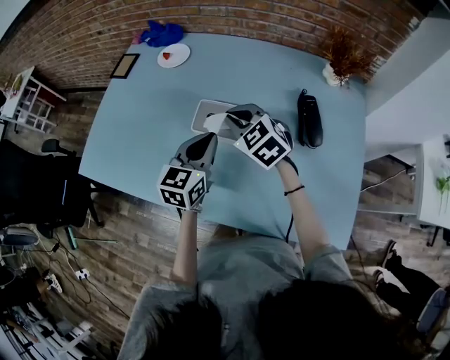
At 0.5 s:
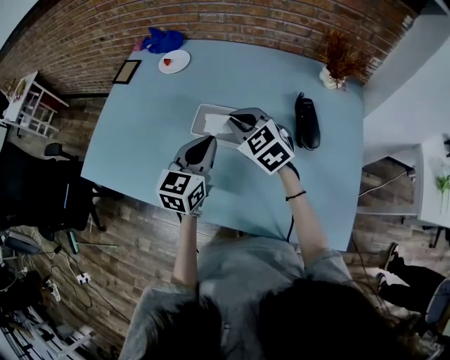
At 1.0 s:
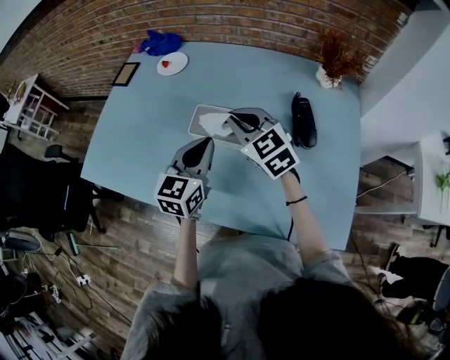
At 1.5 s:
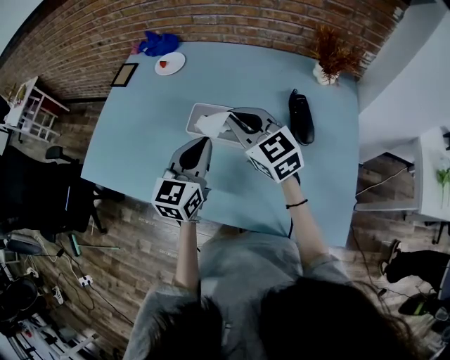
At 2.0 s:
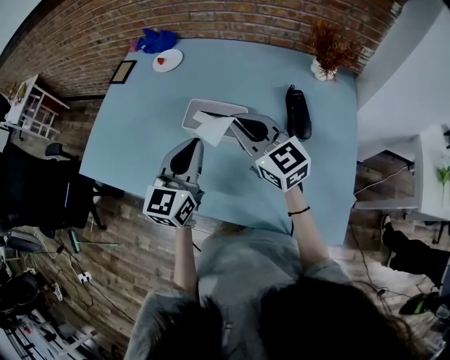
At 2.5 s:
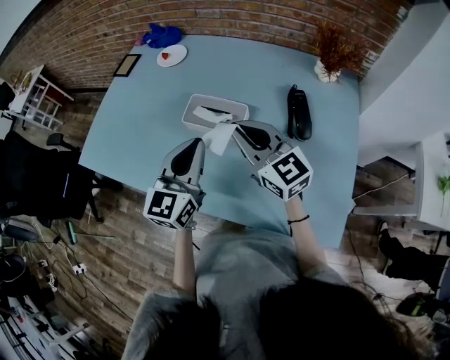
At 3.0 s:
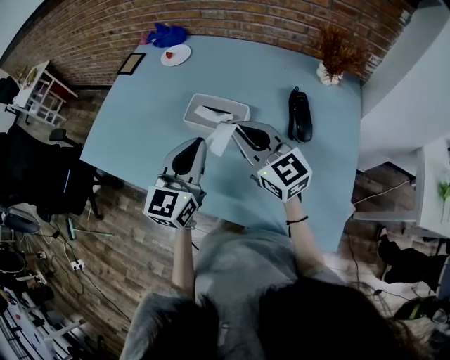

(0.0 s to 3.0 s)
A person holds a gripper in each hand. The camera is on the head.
0.0 s - 1.5 s: The left gripper ends up about 5 cm from where it was. The right gripper is displaced upward by roughly 5 cm, and turns by approximately 20 degrees.
1.5 s - 3.0 s: The grippers both shift backward by some 5 cm.

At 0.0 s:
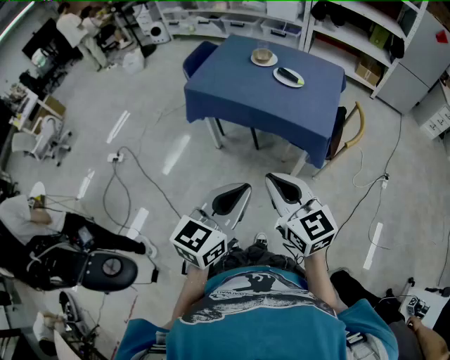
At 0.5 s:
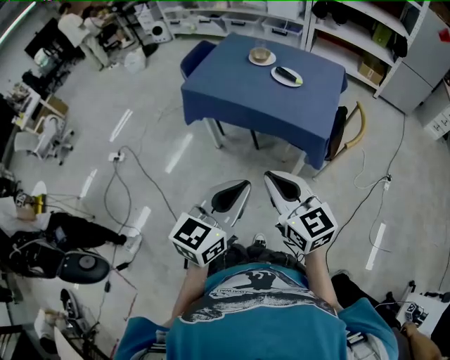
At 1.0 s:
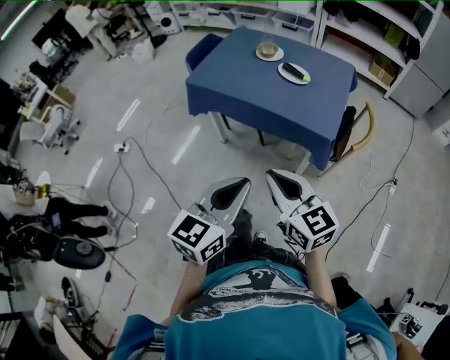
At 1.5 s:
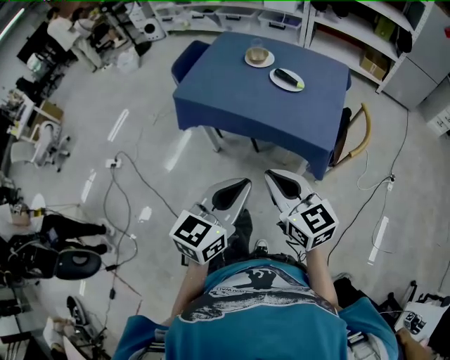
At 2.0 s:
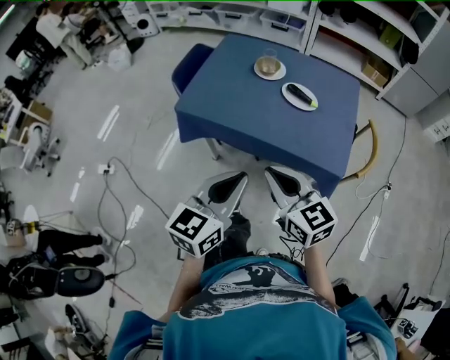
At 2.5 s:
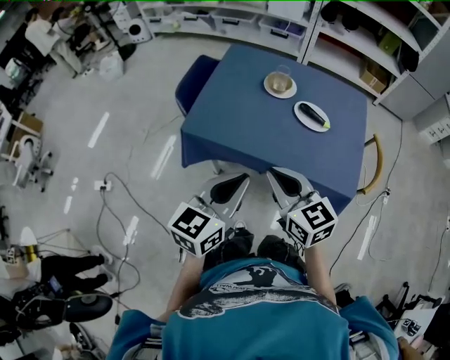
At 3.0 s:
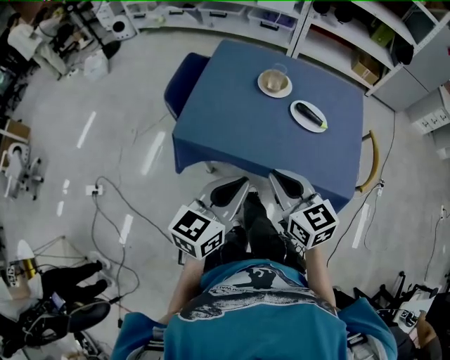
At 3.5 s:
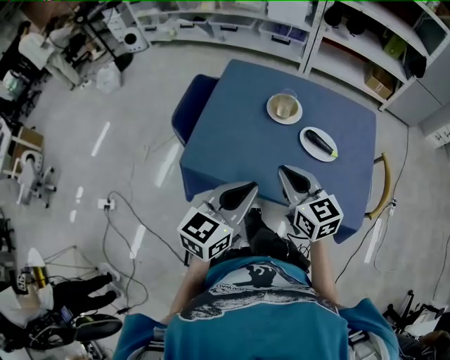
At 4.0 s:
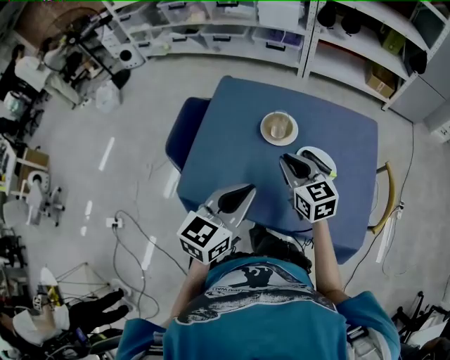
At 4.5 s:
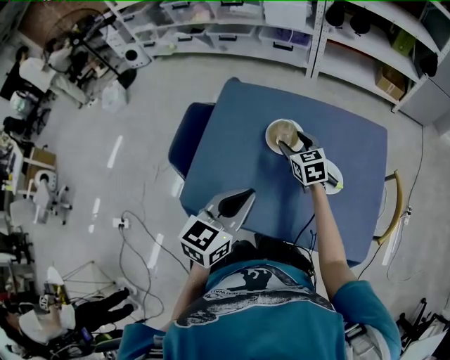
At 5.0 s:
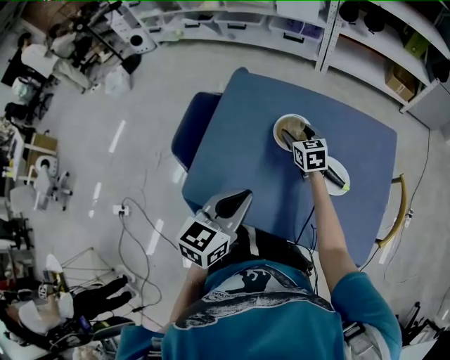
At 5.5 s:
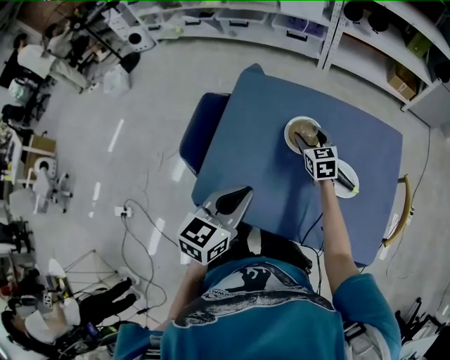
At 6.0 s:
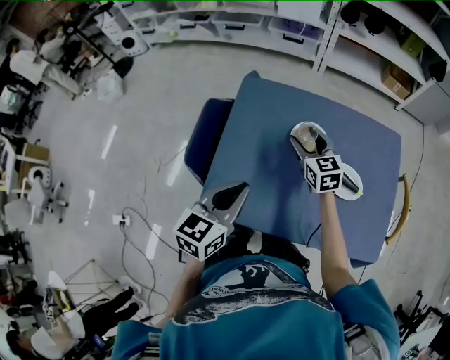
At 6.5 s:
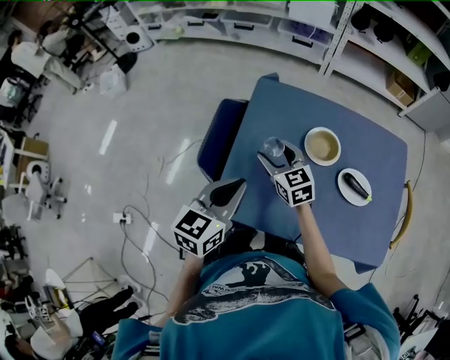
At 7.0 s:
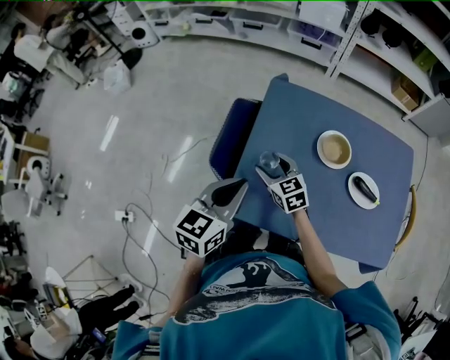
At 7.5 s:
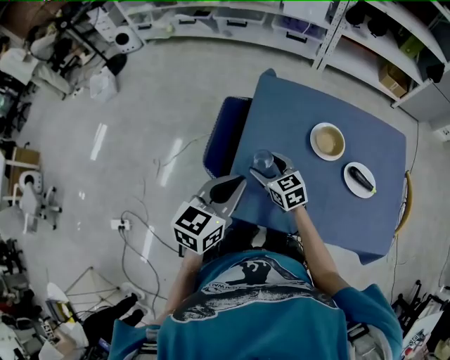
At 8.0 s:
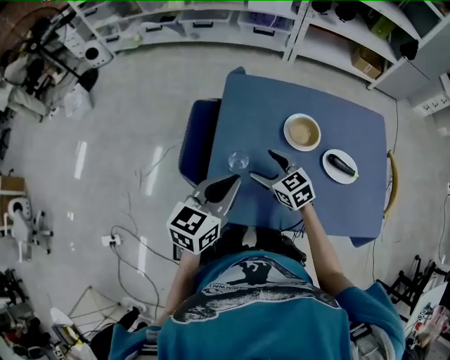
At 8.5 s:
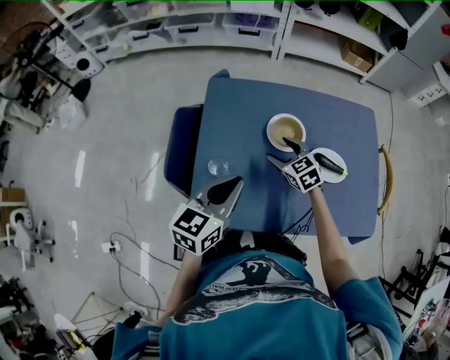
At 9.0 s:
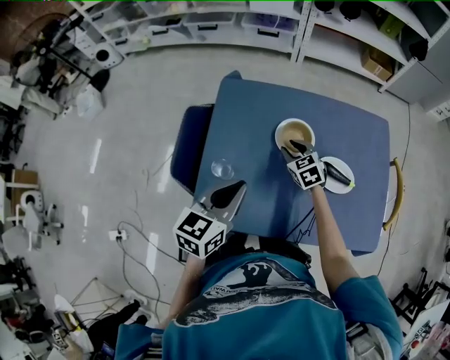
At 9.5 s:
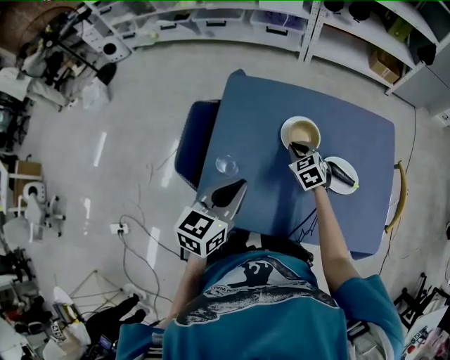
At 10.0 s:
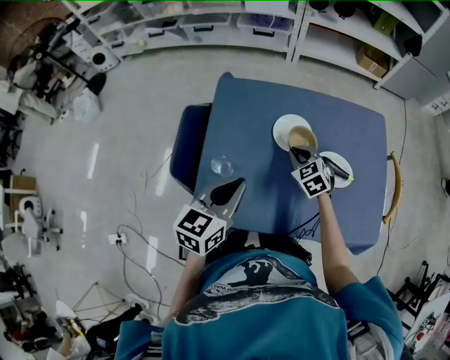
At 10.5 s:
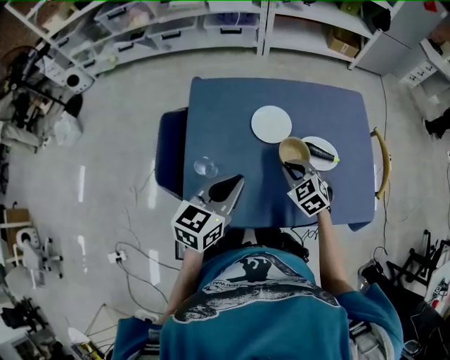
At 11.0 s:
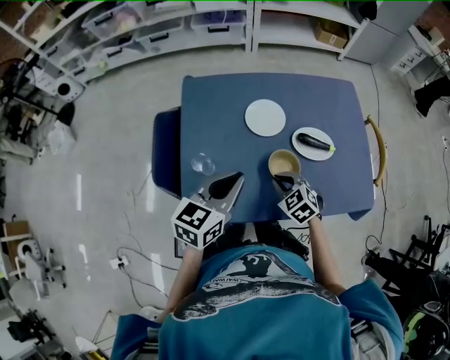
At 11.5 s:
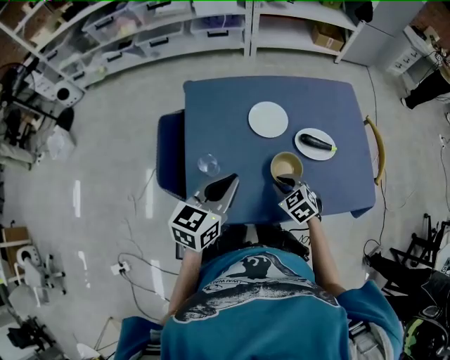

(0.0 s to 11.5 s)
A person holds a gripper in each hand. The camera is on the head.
0.0 s - 2.0 s: Both grippers travel together forward, approximately 25 cm.
2.0 s - 4.0 s: The two grippers go approximately 35 cm forward.
4.0 s - 6.0 s: The right gripper shifts roughly 15 cm forward, and opens; the left gripper is displaced to the left and forward by about 15 cm.
6.0 s - 7.5 s: The left gripper is displaced to the left by roughly 10 cm, while the right gripper travels to the left, backward and downward by roughly 25 cm.
7.5 s - 9.5 s: The right gripper travels to the right and forward by approximately 20 cm, turns by approximately 20 degrees, and closes its fingers. The left gripper goes roughly 10 cm to the right.
9.5 s - 11.5 s: The right gripper goes about 20 cm backward.

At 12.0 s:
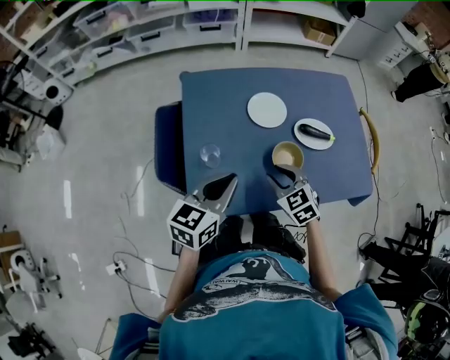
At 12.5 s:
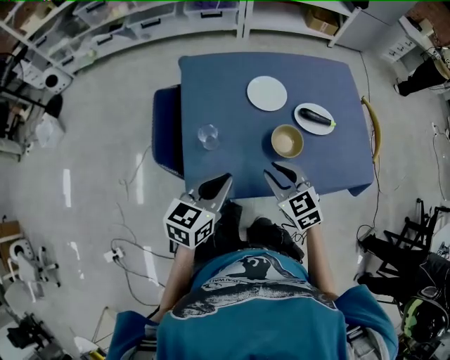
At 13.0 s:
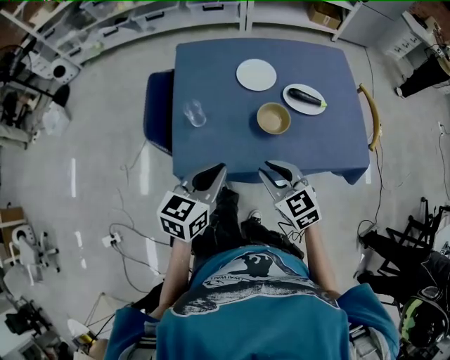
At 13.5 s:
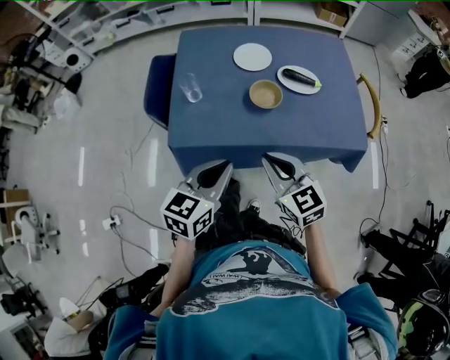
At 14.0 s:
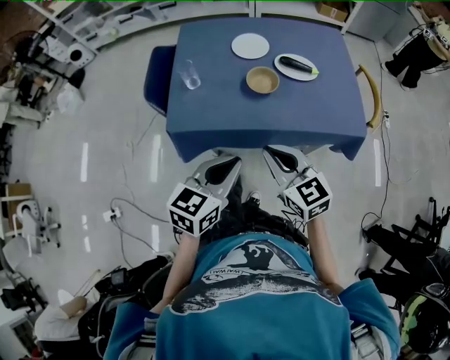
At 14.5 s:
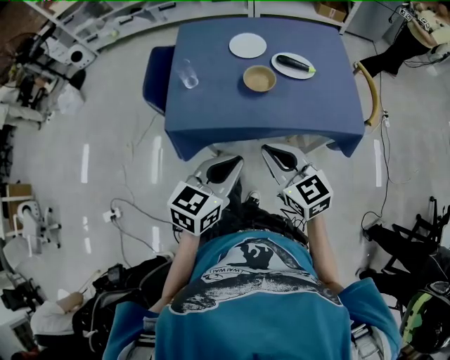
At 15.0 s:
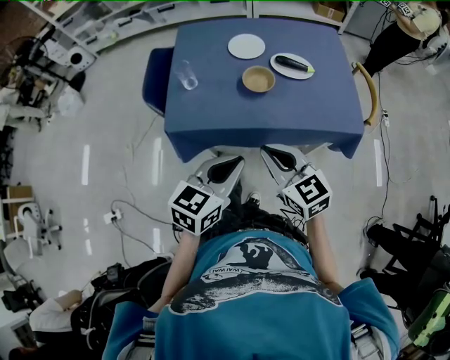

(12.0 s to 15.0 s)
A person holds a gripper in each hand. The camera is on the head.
12.0 s - 13.5 s: The left gripper is displaced backward and to the right by about 20 cm, while the right gripper heads backward and upward, covering approximately 20 cm, and swivels some 30 degrees.
13.5 s - 15.0 s: The right gripper travels backward by some 5 cm; the left gripper heads backward and to the right, covering some 10 cm.

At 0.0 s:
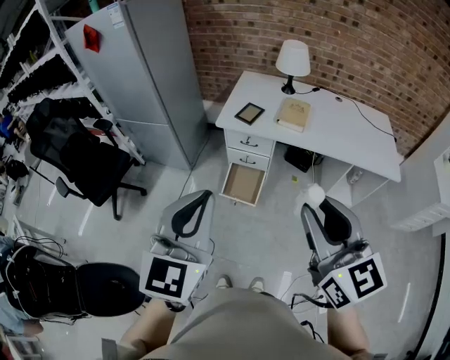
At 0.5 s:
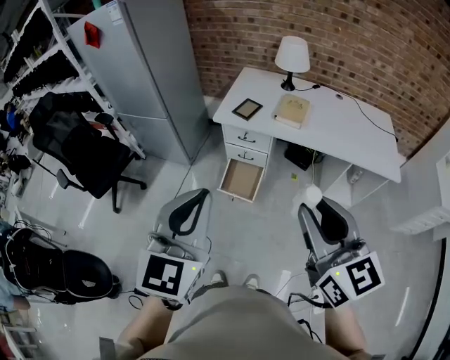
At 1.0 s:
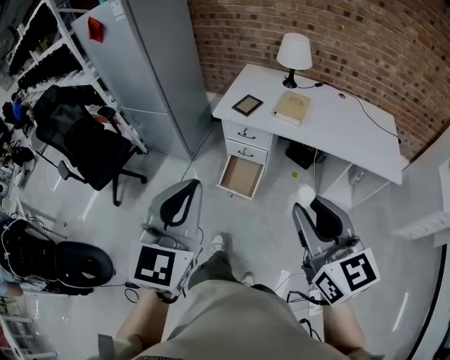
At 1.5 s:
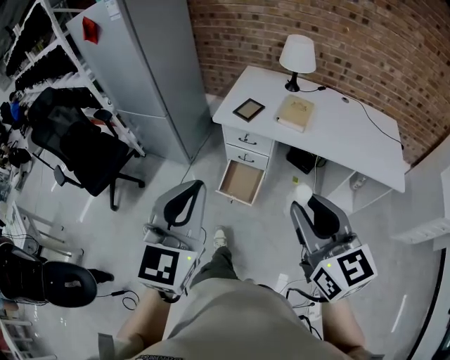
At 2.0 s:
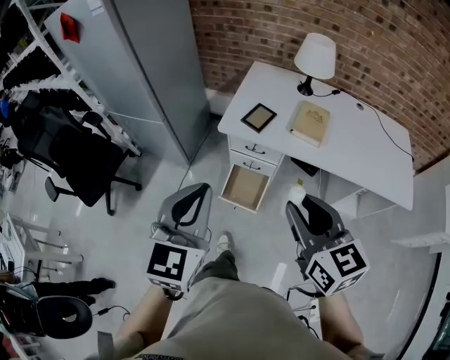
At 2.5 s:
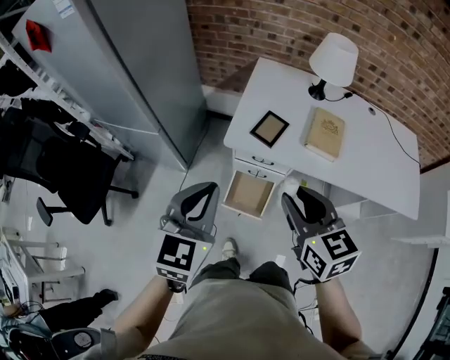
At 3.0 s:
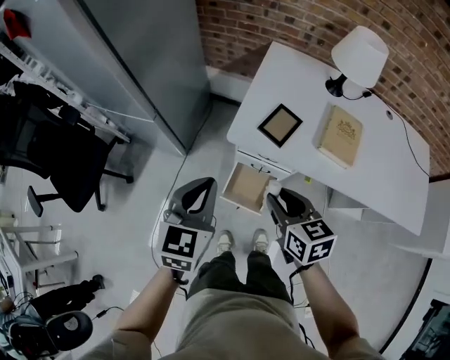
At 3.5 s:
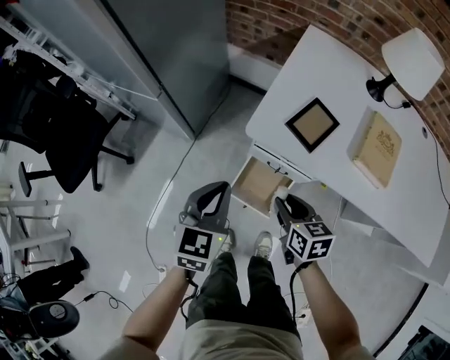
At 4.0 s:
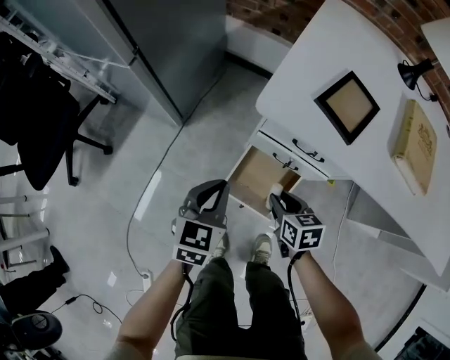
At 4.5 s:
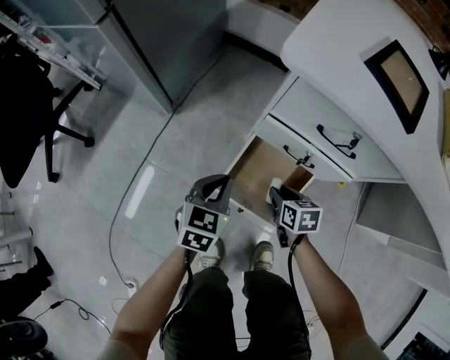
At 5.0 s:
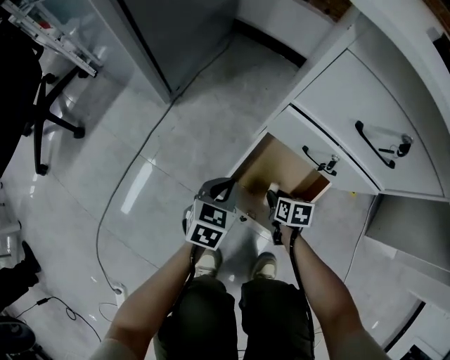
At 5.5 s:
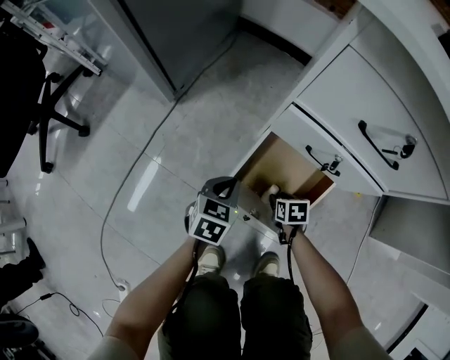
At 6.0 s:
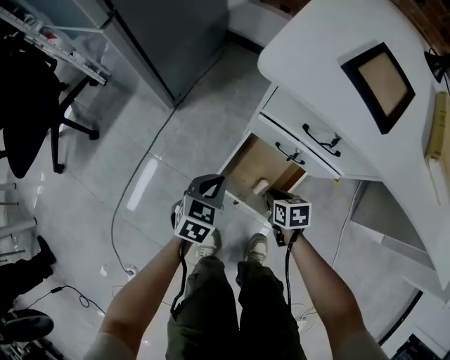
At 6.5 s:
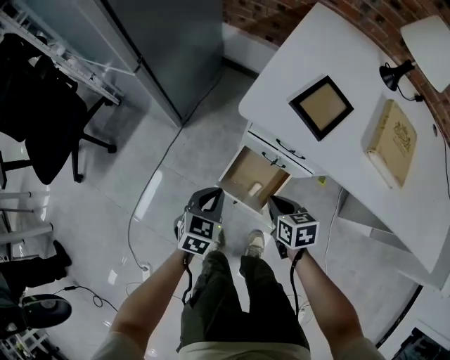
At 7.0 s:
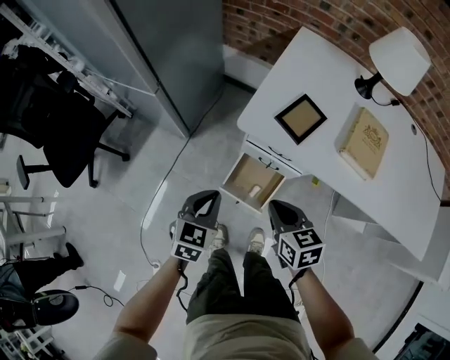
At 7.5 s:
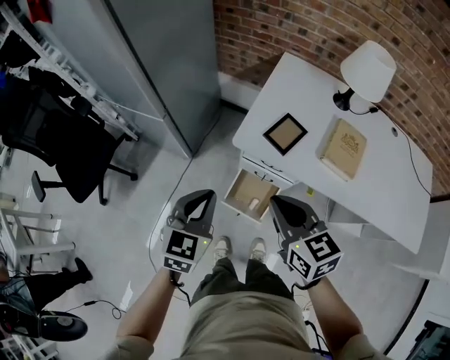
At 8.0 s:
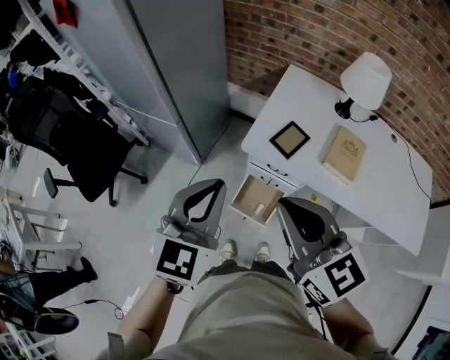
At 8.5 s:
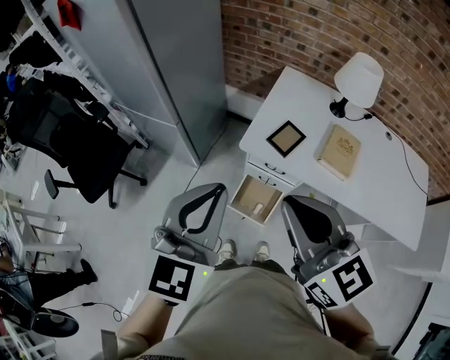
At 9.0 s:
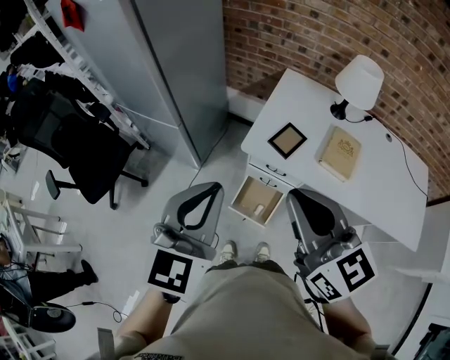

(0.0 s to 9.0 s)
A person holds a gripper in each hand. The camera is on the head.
0.0 s - 2.0 s: Both grippers travel together forward and downward, about 20 cm.
2.0 s - 4.5 s: Both grippers travel together downward, approximately 80 cm. The right gripper angles its fingers downward, by approximately 40 degrees. The left gripper turns by some 30 degrees.
4.5 s - 7.0 s: The two grippers go about 35 cm upward. The right gripper swivels some 20 degrees, and closes.
7.0 s - 9.0 s: Both grippers travel together upward, some 40 cm. The right gripper angles its fingers upward, by about 30 degrees. Meanwhile the left gripper rotates some 20 degrees.
